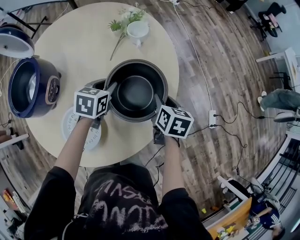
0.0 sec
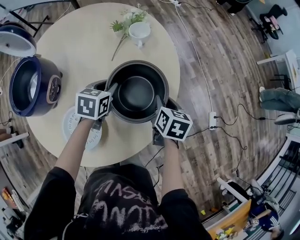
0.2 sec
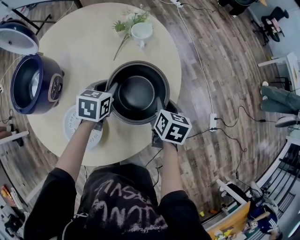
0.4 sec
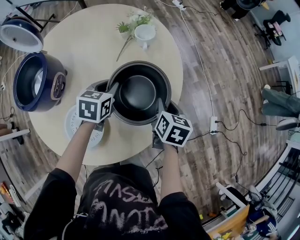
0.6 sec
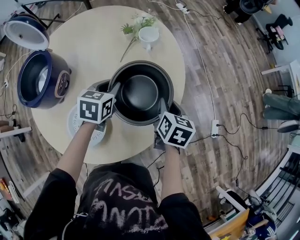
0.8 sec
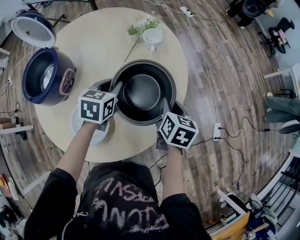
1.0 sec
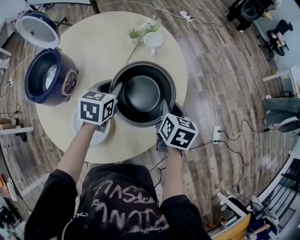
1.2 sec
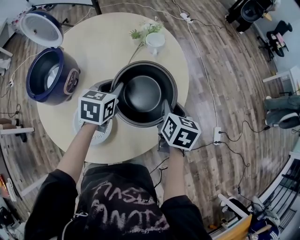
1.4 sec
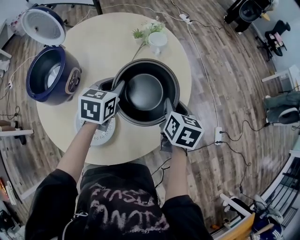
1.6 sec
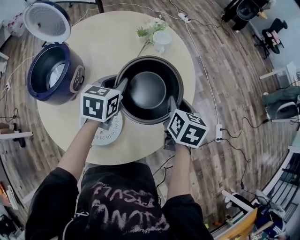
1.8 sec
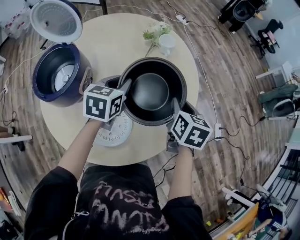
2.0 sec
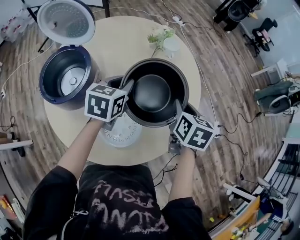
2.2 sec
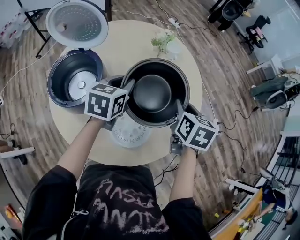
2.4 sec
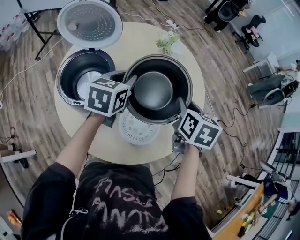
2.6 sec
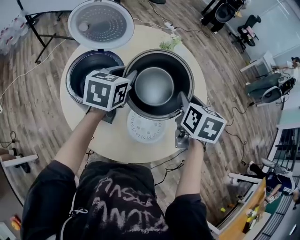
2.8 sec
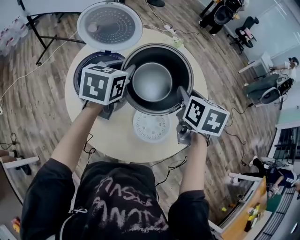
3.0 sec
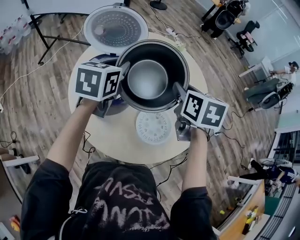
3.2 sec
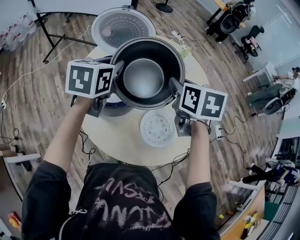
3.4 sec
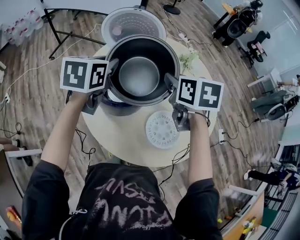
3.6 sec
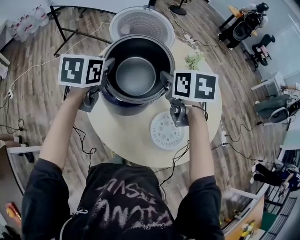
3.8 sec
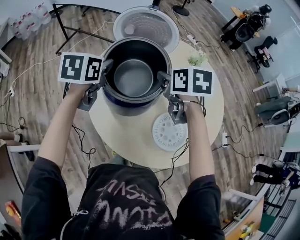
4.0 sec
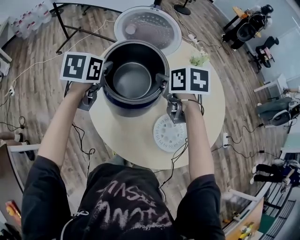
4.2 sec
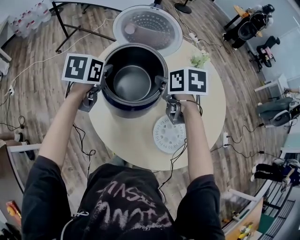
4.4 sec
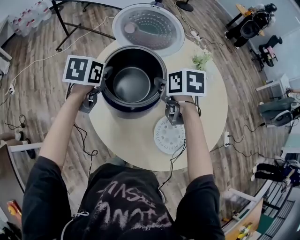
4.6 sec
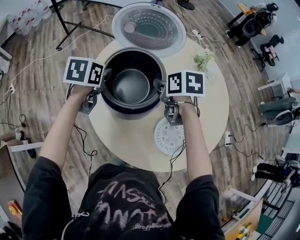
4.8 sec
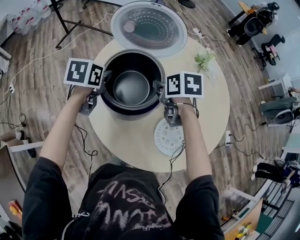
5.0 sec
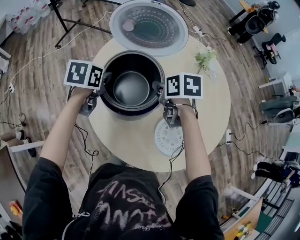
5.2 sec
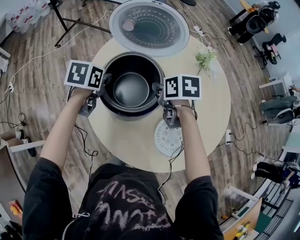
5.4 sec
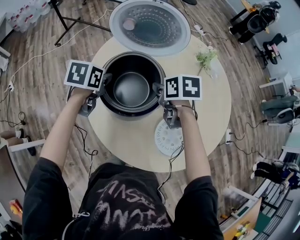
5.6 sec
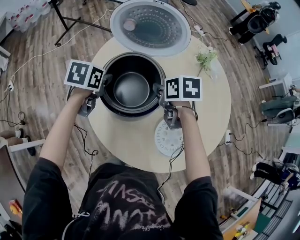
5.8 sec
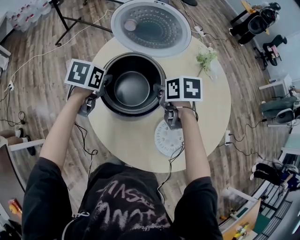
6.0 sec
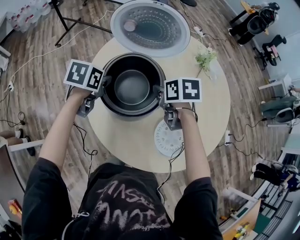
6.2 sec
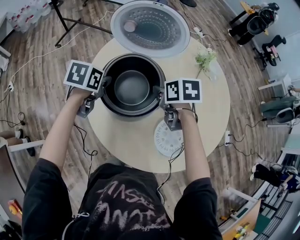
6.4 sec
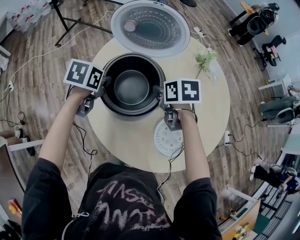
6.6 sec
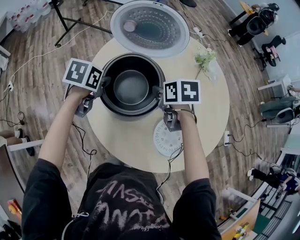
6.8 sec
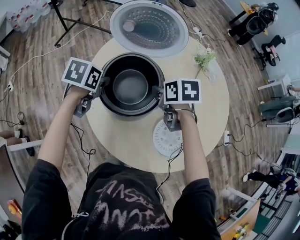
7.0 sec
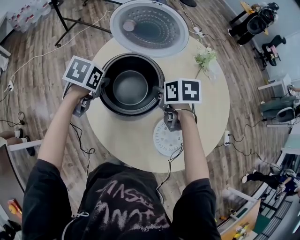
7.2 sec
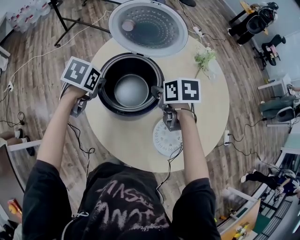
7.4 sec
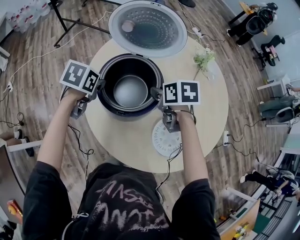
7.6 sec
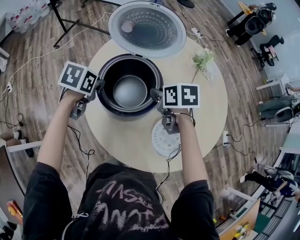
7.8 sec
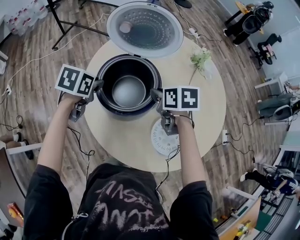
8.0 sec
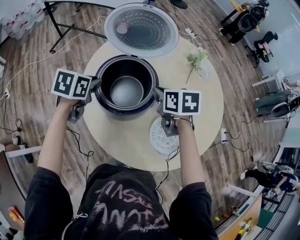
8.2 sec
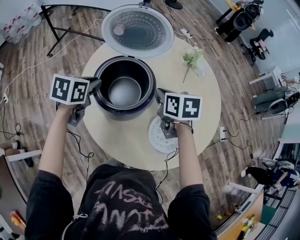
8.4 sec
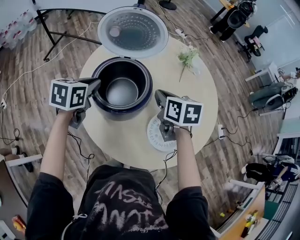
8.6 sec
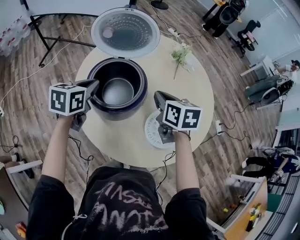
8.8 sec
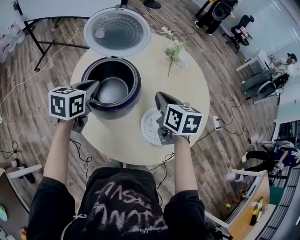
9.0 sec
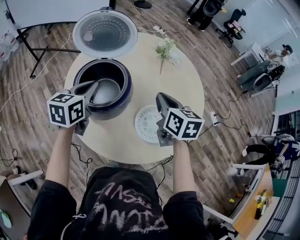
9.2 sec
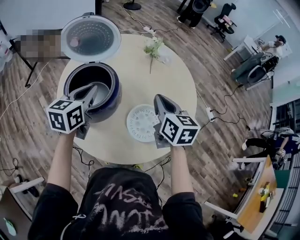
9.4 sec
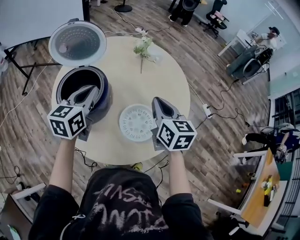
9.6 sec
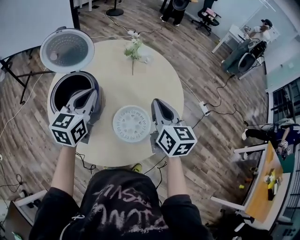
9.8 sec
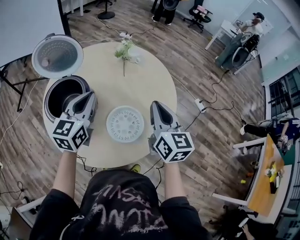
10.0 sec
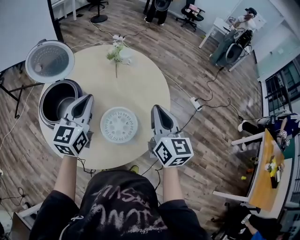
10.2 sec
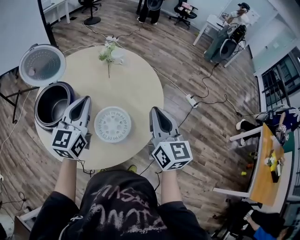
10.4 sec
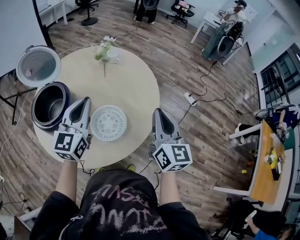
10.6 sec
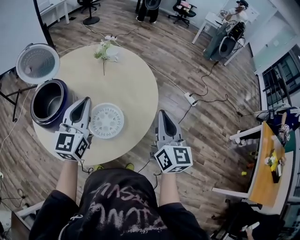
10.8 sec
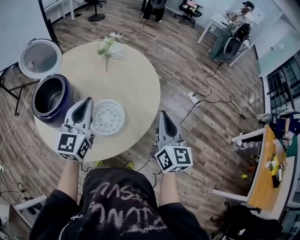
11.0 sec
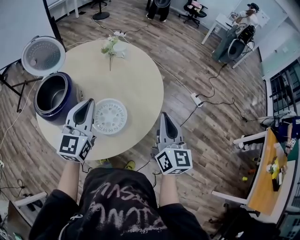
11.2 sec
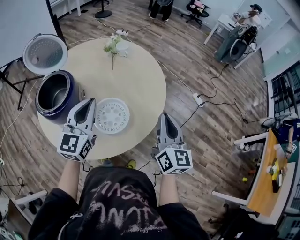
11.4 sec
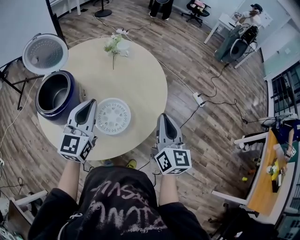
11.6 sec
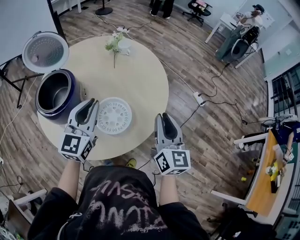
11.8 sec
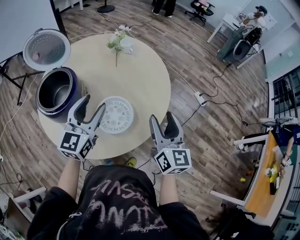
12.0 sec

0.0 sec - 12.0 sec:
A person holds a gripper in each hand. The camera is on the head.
0.0 sec - 1.6 sec: Both grippers move upward, some 10 cm.
1.6 sec - 3.0 sec: The right gripper goes about 35 cm to the left, upward and backward. The left gripper travels to the left and upward by about 30 cm.
3.0 sec - 4.4 sec: The left gripper heads to the left, covering roughly 20 cm, and turns by approximately 20 degrees. The right gripper heads to the left and forward, covering about 20 cm, and changes its angle by some 30 degrees.
4.4 sec - 6.0 sec: The grippers both shift downward by some 5 cm.
6.0 sec - 7.6 sec: The grippers make only small movements.
7.6 sec - 9.0 sec: The right gripper is displaced upward, to the right and backward by approximately 15 cm, and turns by some 30 degrees. Meanwhile the left gripper is displaced upward and to the right by some 10 cm, and tips its fingers upward by approximately 30 degrees.
9.0 sec - 10.4 sec: The left gripper travels to the right by some 25 cm, and rotates approximately 30 degrees; the right gripper is displaced to the right and backward by roughly 30 cm, and angles its fingers upward, by roughly 30 degrees.
10.4 sec - 12.0 sec: The right gripper goes some 5 cm downward, and opens up. Meanwhile the left gripper ends up about 5 cm from where it was, and opens its fingers.

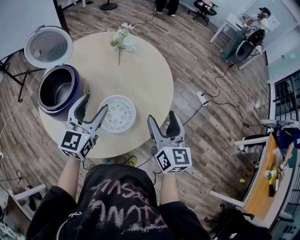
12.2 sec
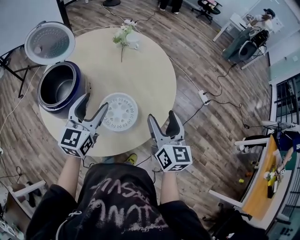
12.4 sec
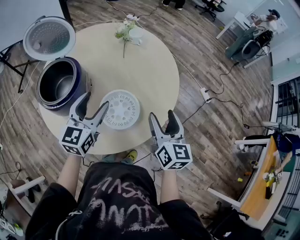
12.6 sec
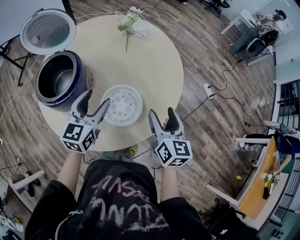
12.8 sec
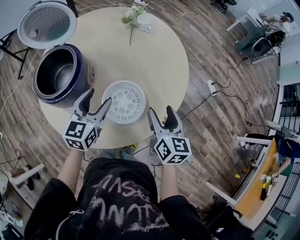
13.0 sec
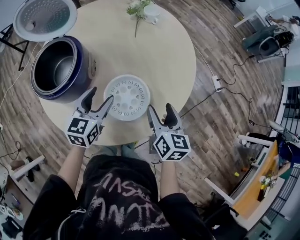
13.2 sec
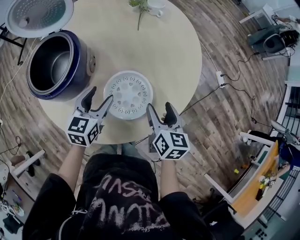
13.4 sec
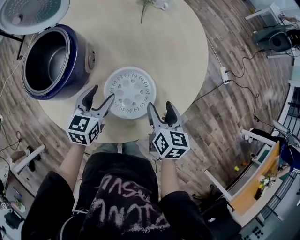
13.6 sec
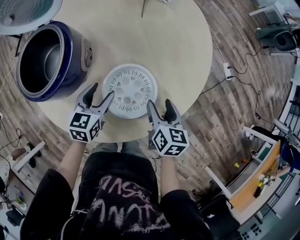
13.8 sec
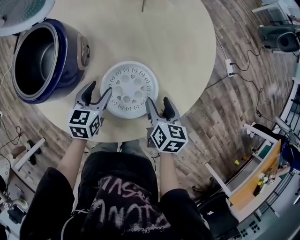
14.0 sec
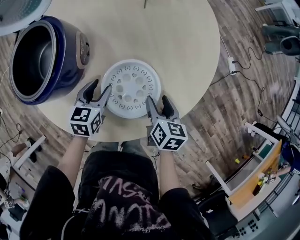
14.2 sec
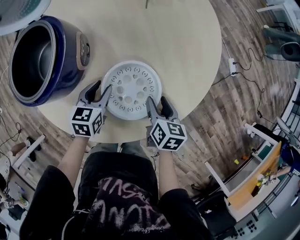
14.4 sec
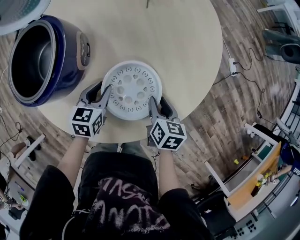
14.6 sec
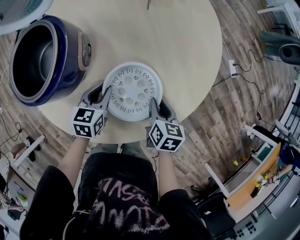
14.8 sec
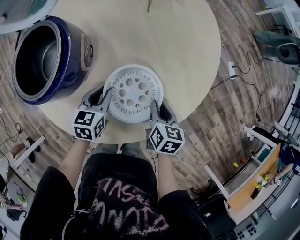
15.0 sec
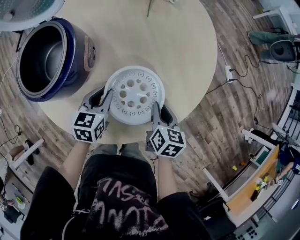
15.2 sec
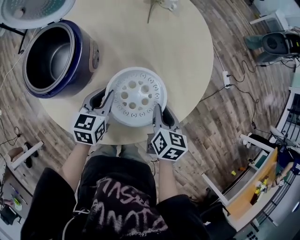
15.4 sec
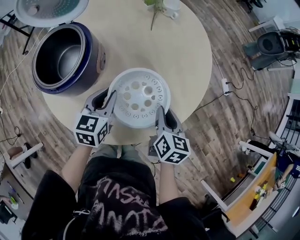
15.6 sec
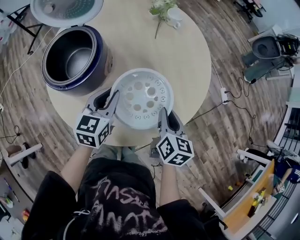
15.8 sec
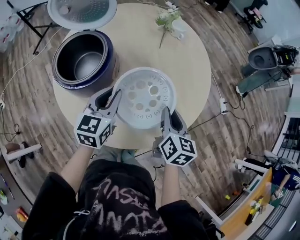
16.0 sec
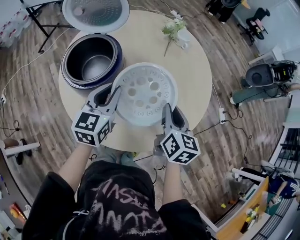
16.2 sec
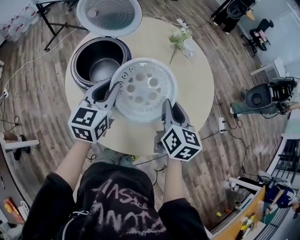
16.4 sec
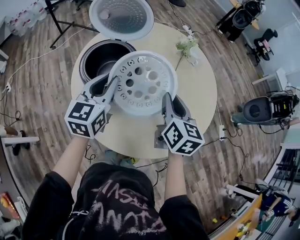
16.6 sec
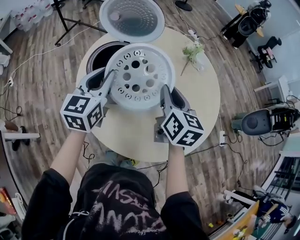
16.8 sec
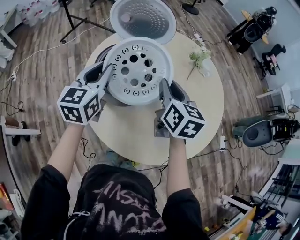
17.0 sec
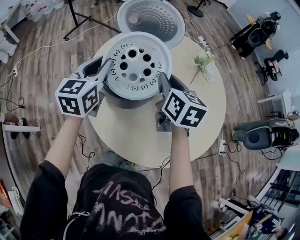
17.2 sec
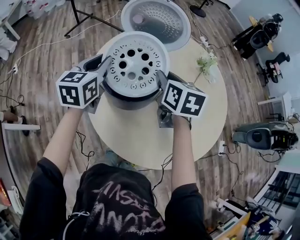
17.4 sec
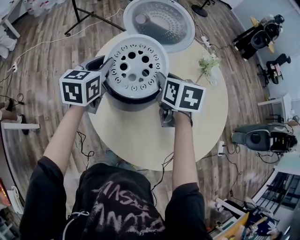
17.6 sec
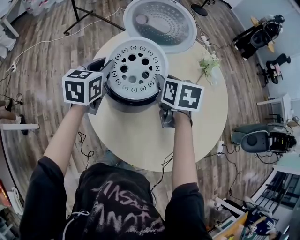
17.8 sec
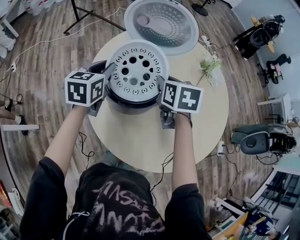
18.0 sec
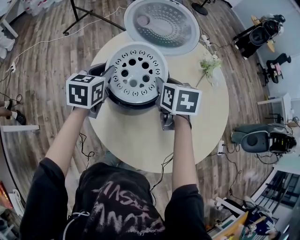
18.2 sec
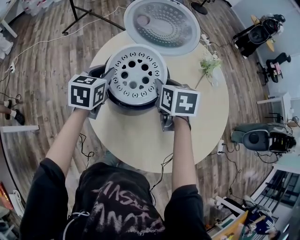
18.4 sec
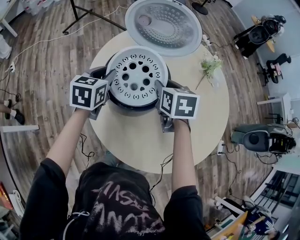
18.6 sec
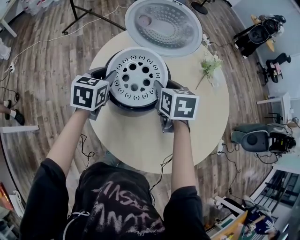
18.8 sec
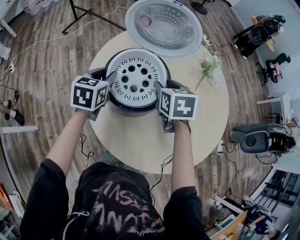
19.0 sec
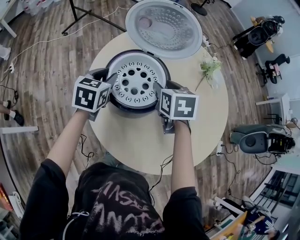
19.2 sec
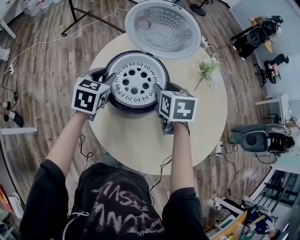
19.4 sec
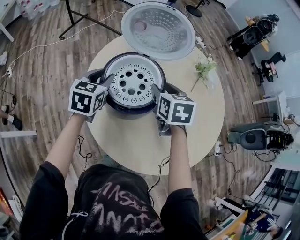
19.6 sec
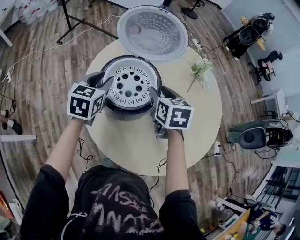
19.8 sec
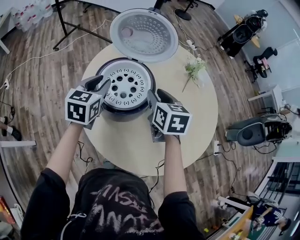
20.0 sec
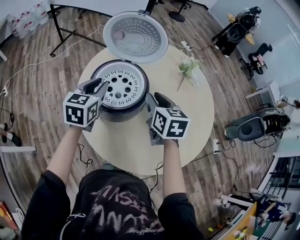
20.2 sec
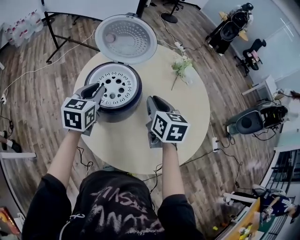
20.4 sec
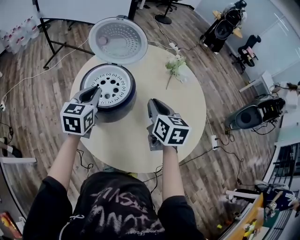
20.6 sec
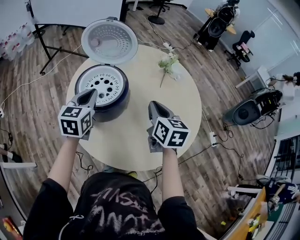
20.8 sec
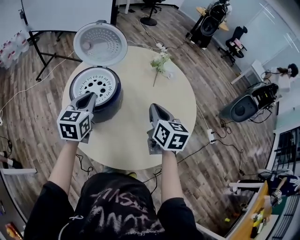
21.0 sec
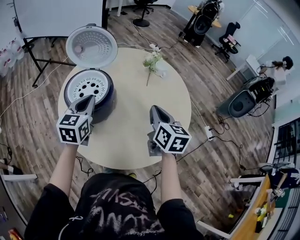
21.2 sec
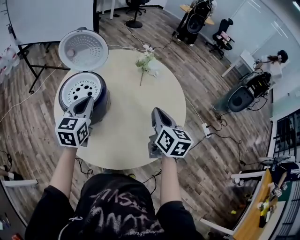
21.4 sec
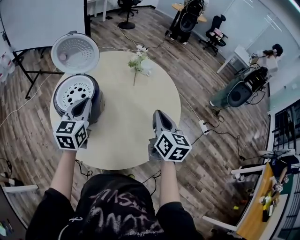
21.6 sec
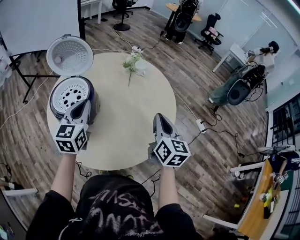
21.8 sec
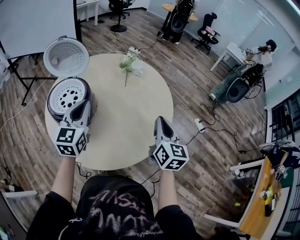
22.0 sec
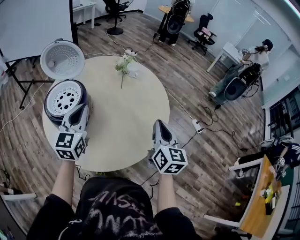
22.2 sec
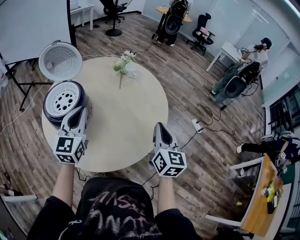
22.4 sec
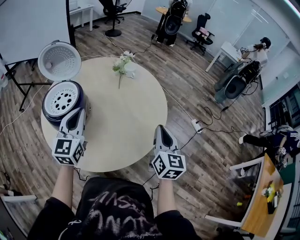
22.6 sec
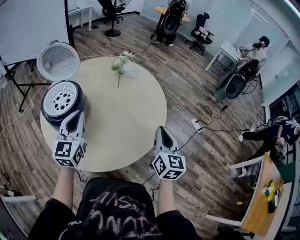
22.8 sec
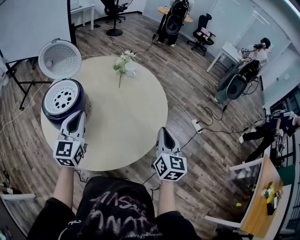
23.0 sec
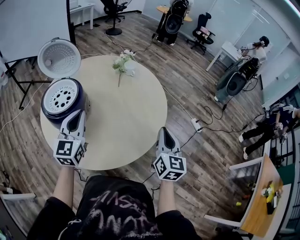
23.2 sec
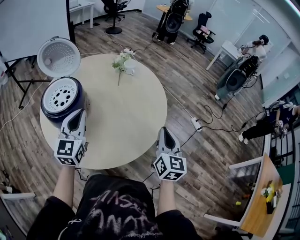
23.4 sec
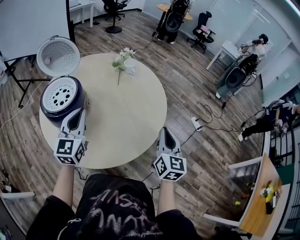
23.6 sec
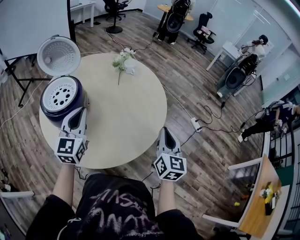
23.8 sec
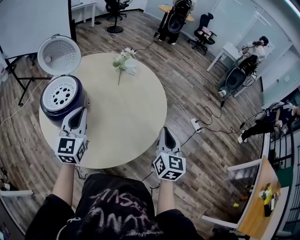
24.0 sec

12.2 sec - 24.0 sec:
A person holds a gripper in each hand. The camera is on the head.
12.2 sec - 13.6 sec: Both grippers move downward, about 20 cm. The right gripper swivels about 30 degrees. The left gripper rotates some 30 degrees.
13.6 sec - 15.2 sec: The right gripper heads downward, covering approximately 5 cm, and closes its fingers; the left gripper closes its fingers.
15.2 sec - 16.6 sec: The two grippers go approximately 30 cm upward and to the left. The right gripper changes its angle by roughly 30 degrees; the left gripper rotates some 30 degrees.
16.6 sec - 18.2 sec: The right gripper moves to the left and forward, roughly 20 cm, and turns by roughly 30 degrees. Meanwhile the left gripper travels to the left, forward and downward by some 20 cm, and rotates approximately 20 degrees.
18.2 sec - 19.6 sec: There are only small adjustments of the grippers.
19.6 sec - 21.0 sec: The two grippers go about 20 cm to the right, backward and upward. The left gripper closes up. Meanwhile the right gripper turns by about 30 degrees, and closes its fingers.
21.0 sec - 22.6 sec: The right gripper moves to the right and backward, approximately 25 cm, and turns by roughly 30 degrees, while the left gripper moves to the right, approximately 15 cm, and turns by some 20 degrees.
22.6 sec - 24.0 sec: The grippers stay close to where they were, moving slightly.
